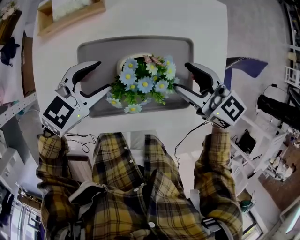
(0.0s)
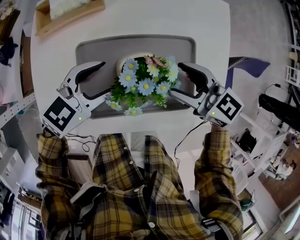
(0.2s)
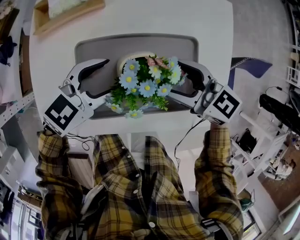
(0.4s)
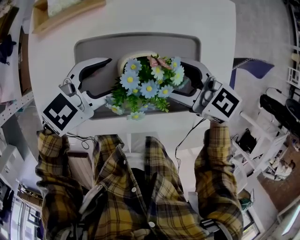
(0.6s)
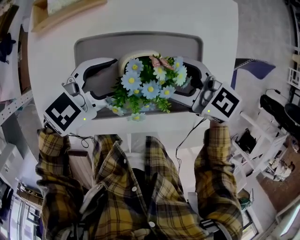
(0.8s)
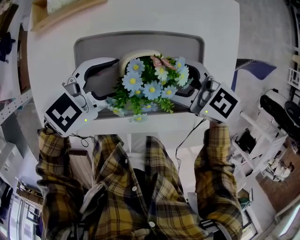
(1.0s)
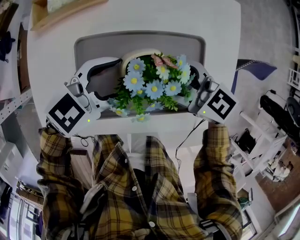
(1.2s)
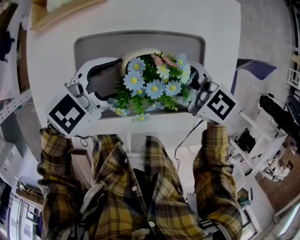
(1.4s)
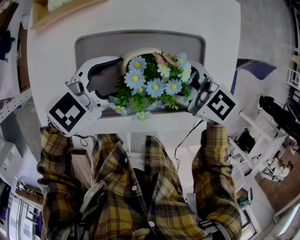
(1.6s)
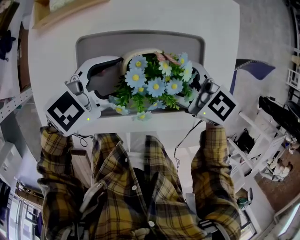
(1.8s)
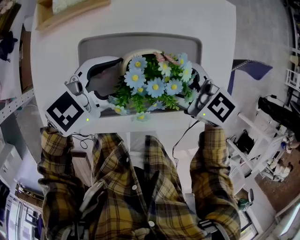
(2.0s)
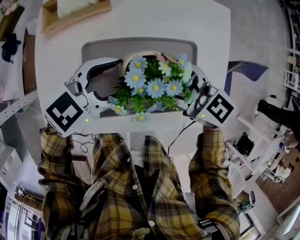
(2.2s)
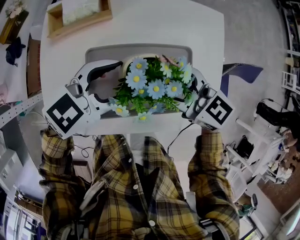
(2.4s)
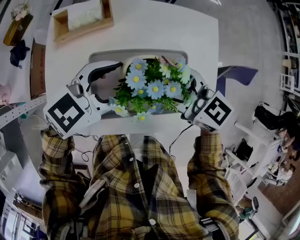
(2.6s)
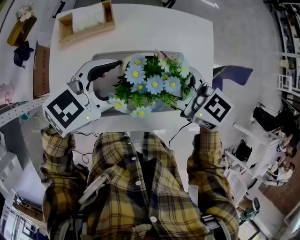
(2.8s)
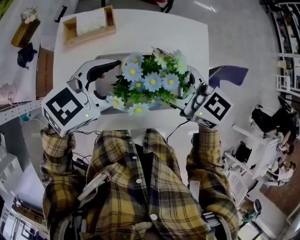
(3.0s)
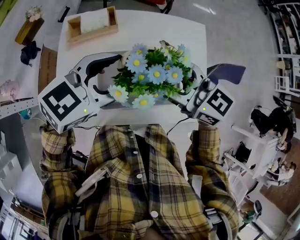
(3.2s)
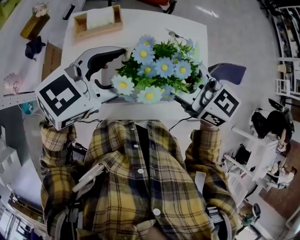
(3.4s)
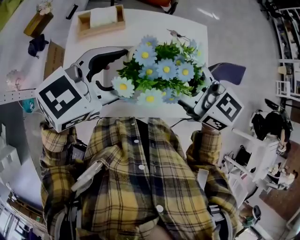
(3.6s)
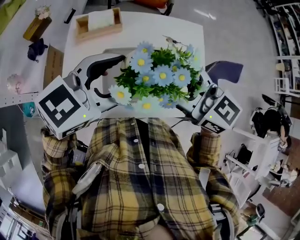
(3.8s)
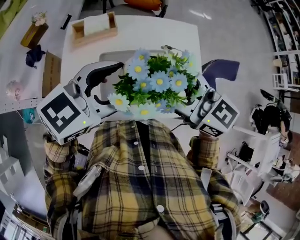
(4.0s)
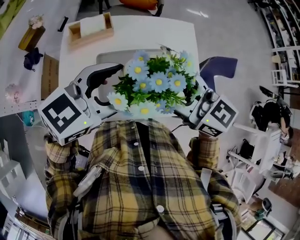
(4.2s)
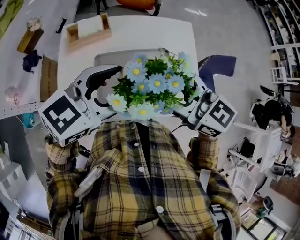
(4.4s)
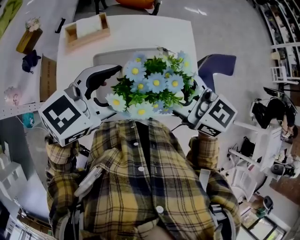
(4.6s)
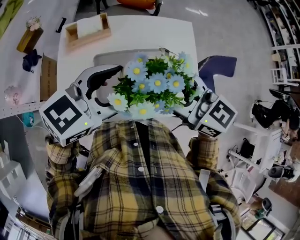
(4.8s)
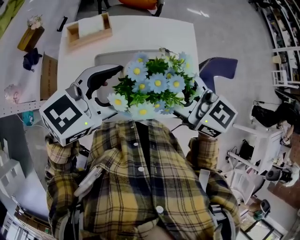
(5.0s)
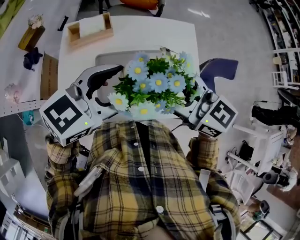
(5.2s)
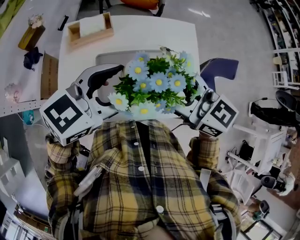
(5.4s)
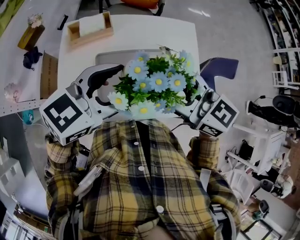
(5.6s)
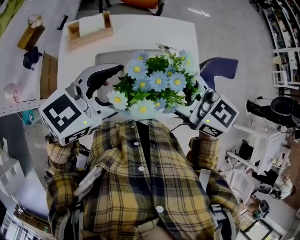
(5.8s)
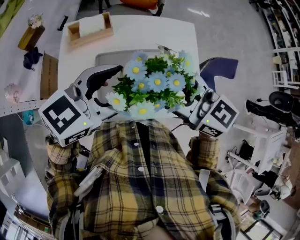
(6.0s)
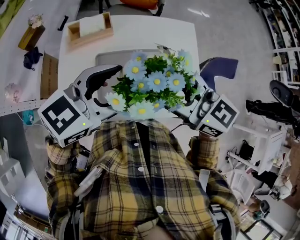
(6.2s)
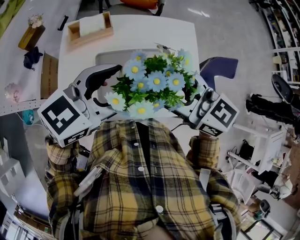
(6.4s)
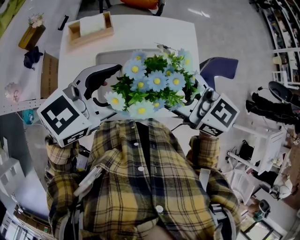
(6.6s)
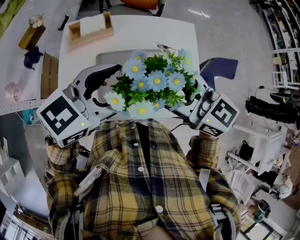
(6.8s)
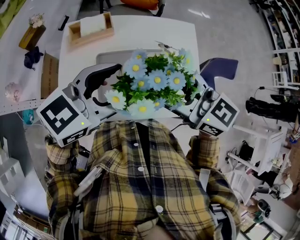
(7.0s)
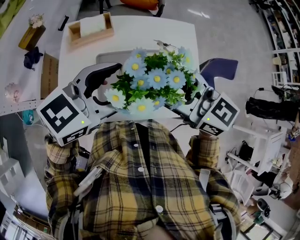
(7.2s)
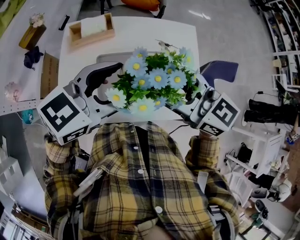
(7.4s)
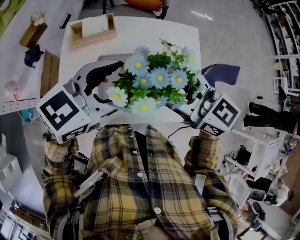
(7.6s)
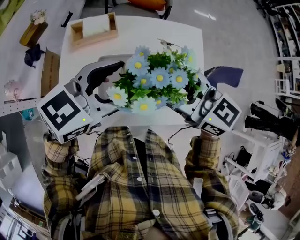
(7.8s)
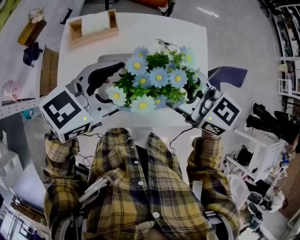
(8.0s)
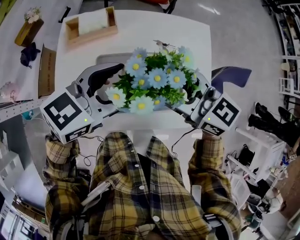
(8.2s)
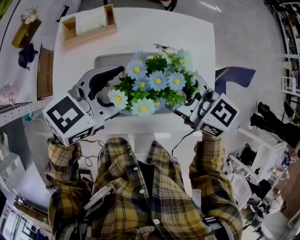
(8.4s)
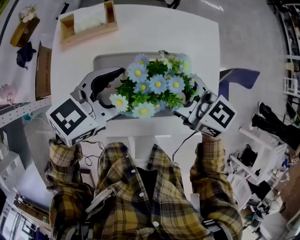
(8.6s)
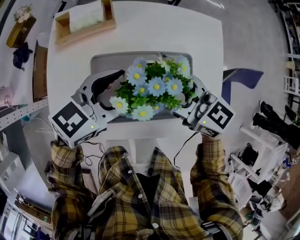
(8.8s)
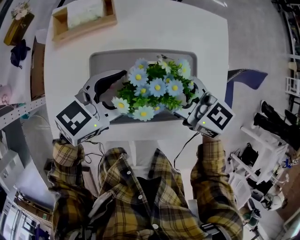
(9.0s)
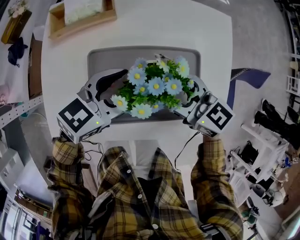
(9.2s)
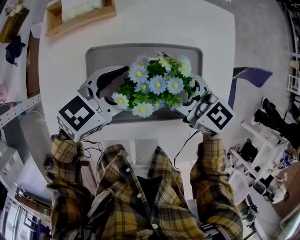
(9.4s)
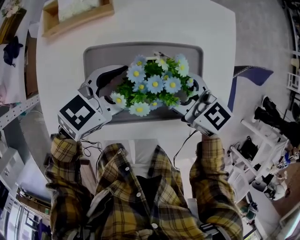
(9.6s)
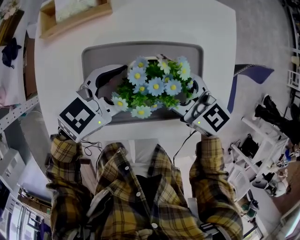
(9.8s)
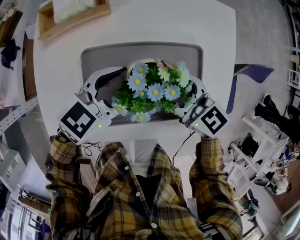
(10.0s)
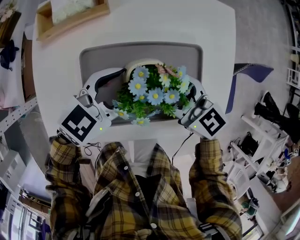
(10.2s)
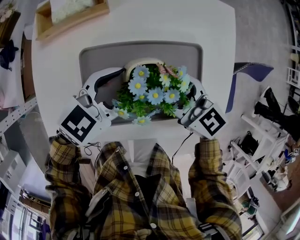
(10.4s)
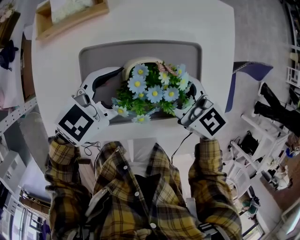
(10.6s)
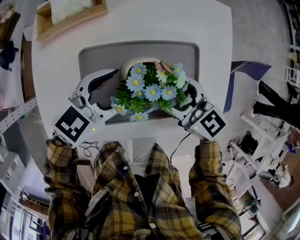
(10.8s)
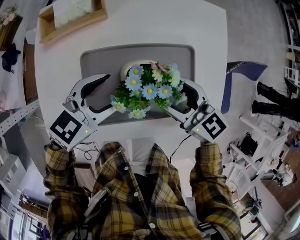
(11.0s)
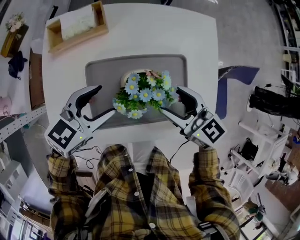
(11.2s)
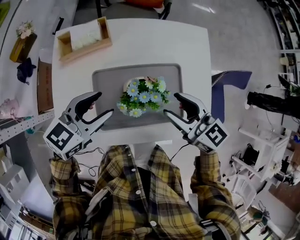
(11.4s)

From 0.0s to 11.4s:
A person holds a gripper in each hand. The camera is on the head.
From 0.0s to 1.4s: The right gripper ends up about 5 cm from where it was.
From 1.4s to 4.2s: There are only small adjustments of the grippers.
From 4.2s to 7.2s: The two grippers keep their place.
From 7.2s to 8.6s: Both grippers stay put.
From 8.6s to 10.0s: The grippers stay close to where they were, moving slightly.
From 10.0s to 11.4s: The right gripper shifts about 5 cm to the right. Meanwhile the left gripper moves to the left, approximately 5 cm.

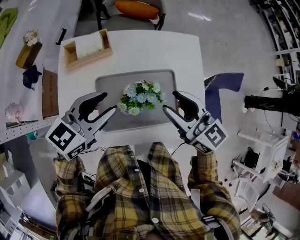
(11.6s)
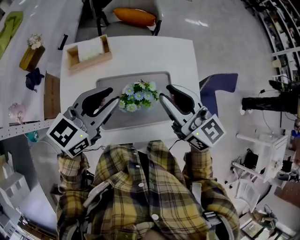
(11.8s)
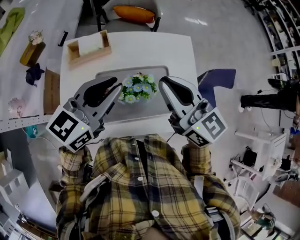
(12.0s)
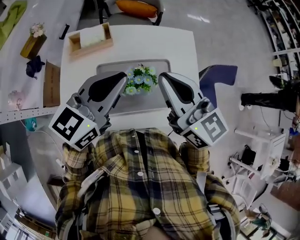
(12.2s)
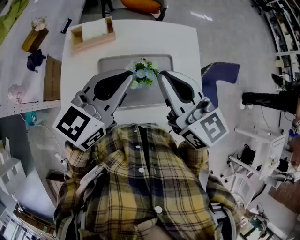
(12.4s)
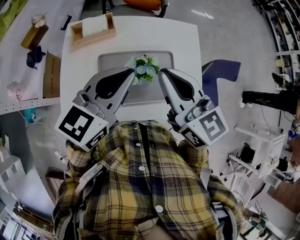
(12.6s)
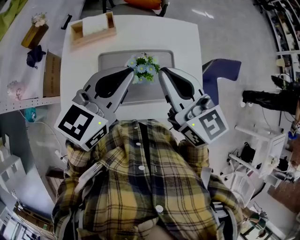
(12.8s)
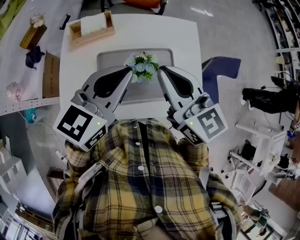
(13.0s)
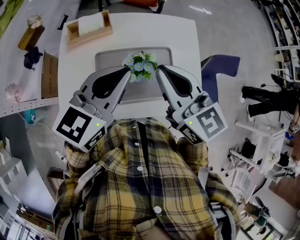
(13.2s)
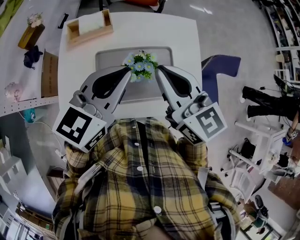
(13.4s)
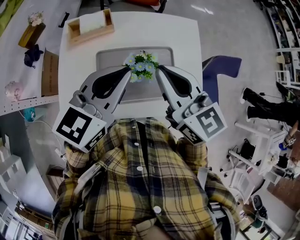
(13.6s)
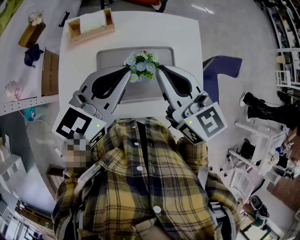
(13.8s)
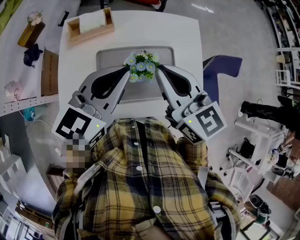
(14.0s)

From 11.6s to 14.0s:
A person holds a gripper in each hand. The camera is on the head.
From 11.6s to 12.8s: The right gripper shifts roughly 10 cm upward, and closes. The left gripper heads upward and to the right, covering some 10 cm, and closes its fingers.
From 12.8s to 14.0s: The grippers make only small movements.

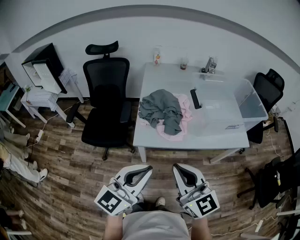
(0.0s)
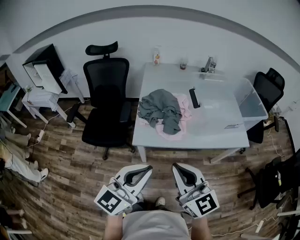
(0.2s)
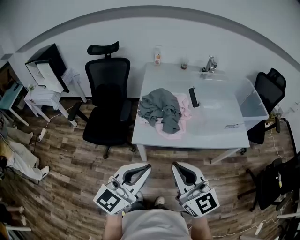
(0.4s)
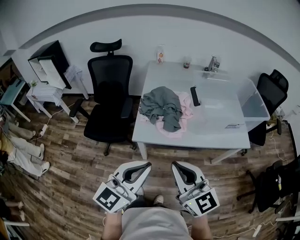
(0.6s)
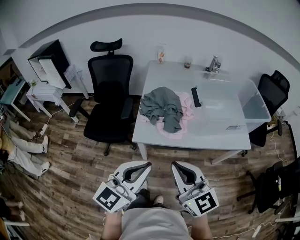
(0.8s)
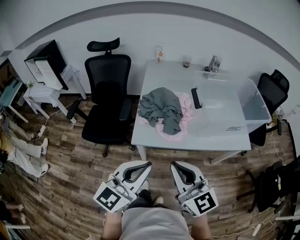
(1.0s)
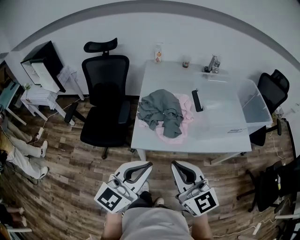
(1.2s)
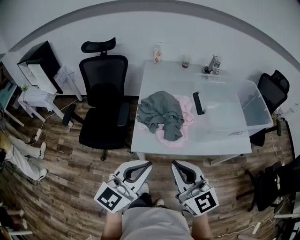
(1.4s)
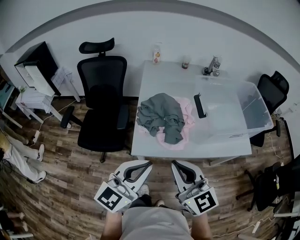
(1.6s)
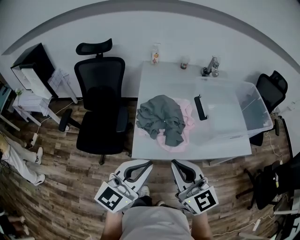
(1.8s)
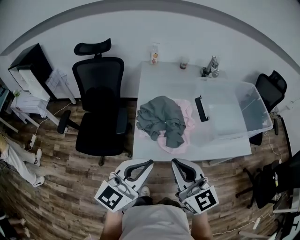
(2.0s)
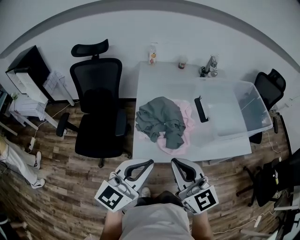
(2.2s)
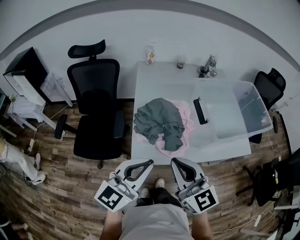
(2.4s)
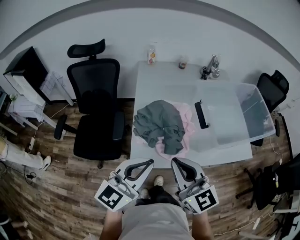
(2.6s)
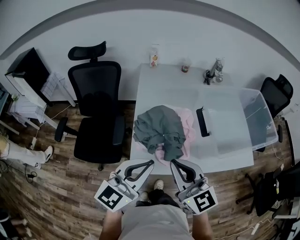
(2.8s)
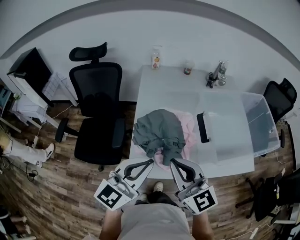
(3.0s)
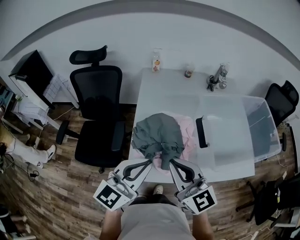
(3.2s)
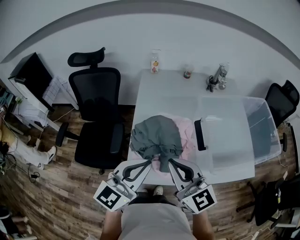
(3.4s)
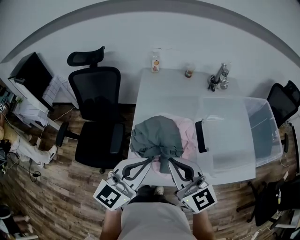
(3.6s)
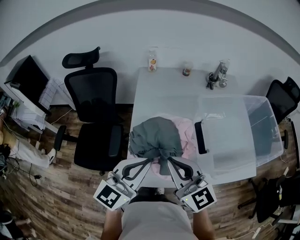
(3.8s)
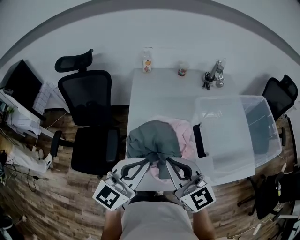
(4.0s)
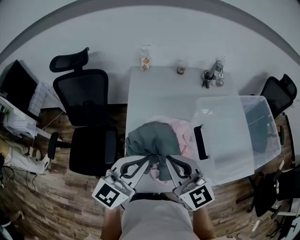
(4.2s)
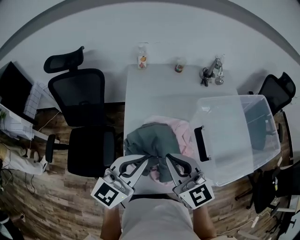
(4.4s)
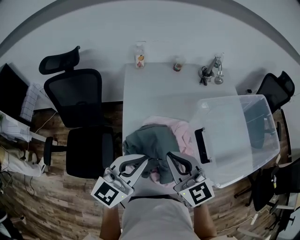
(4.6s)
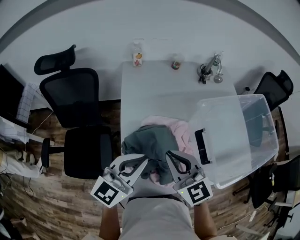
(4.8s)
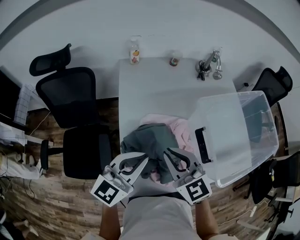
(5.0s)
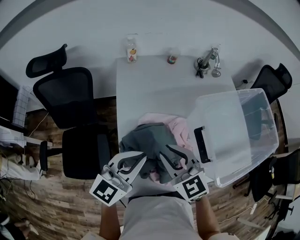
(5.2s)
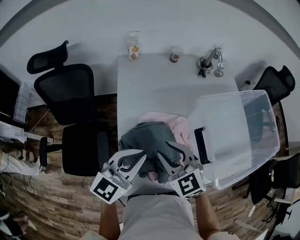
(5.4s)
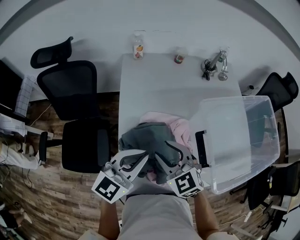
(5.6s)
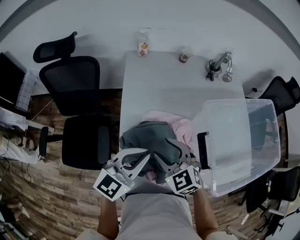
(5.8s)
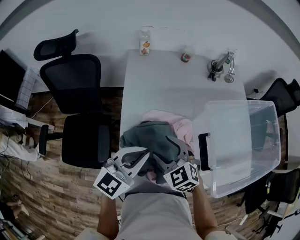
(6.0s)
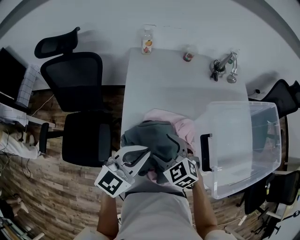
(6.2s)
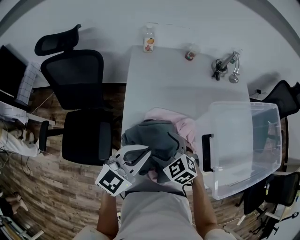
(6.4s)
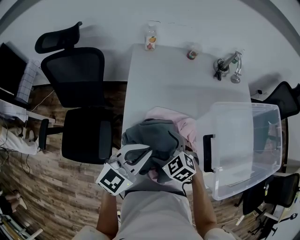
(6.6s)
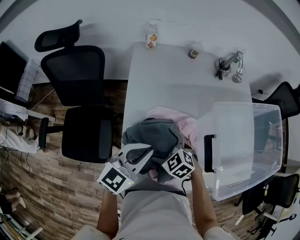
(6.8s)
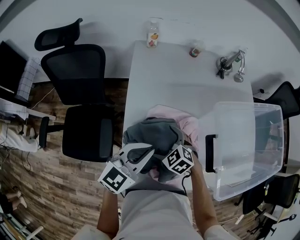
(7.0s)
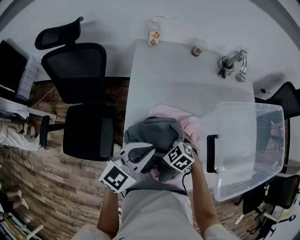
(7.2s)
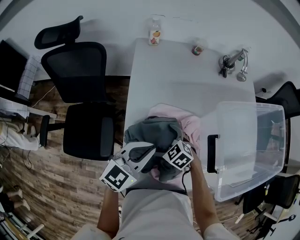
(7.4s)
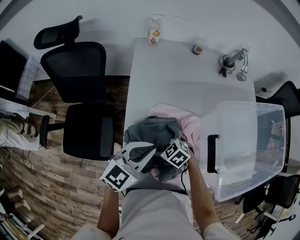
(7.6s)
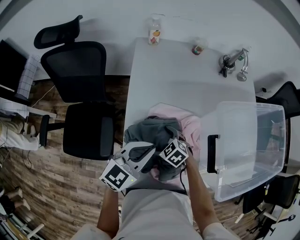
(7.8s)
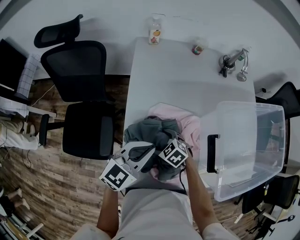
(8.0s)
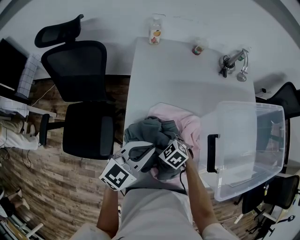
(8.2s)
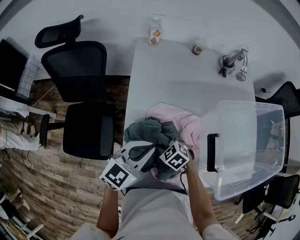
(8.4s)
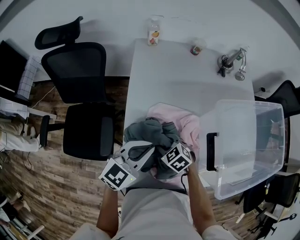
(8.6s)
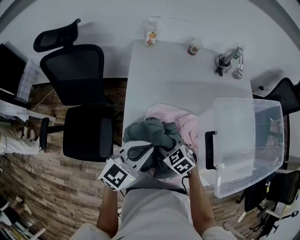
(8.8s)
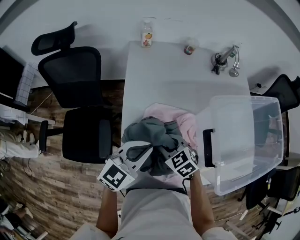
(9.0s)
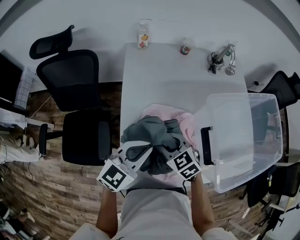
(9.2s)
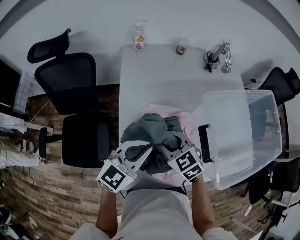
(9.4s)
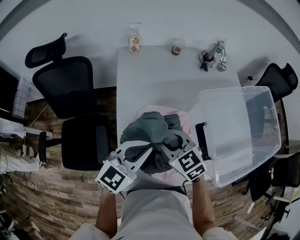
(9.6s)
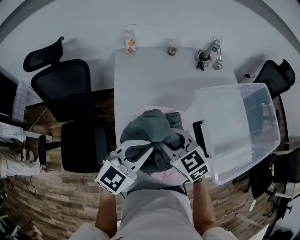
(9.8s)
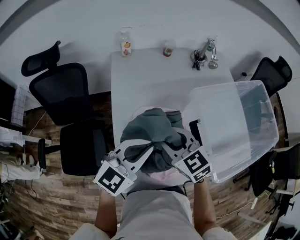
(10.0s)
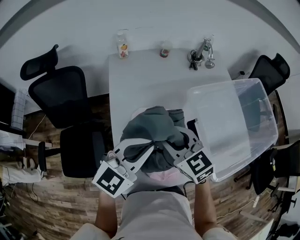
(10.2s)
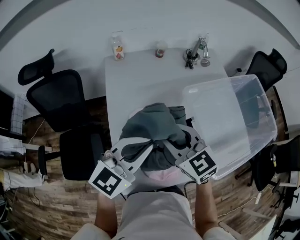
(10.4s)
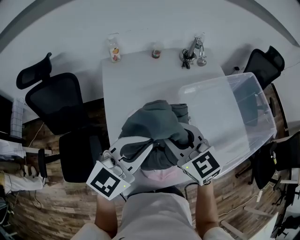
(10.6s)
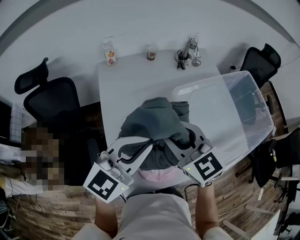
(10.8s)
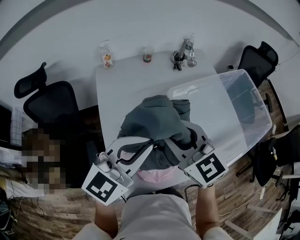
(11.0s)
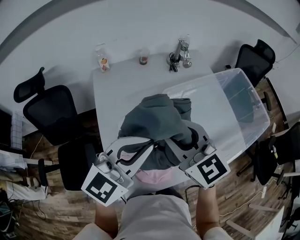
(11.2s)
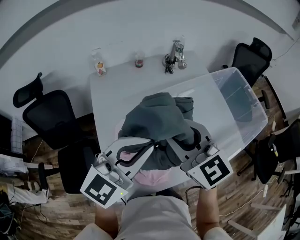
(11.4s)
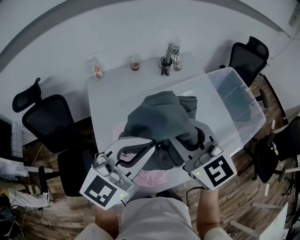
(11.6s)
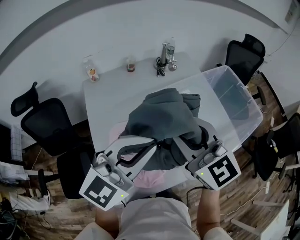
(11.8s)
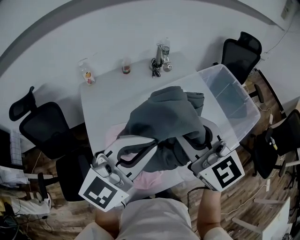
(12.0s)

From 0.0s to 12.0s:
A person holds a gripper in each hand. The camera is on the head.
From 0.0s to 1.6s: The two grippers go roughly 10 cm forward.
From 1.6s to 3.0s: The grippers both shift forward by about 15 cm.
From 3.0s to 4.4s: The grippers both shift forward by roughly 15 cm.
From 4.4s to 6.0s: The right gripper moves downward and forward, roughly 15 cm, changes its angle by some 30 degrees, and opens up. Meanwhile the left gripper moves forward and downward, about 10 cm.
From 6.0s to 7.6s: The left gripper heads downward, covering roughly 5 cm, while the right gripper goes some 15 cm downward, rotates roughly 20 degrees, and opens its fingers.
From 7.6s to 9.0s: The right gripper heads upward, covering approximately 10 cm, and closes up.
From 9.0s to 10.4s: The right gripper is displaced upward by roughly 20 cm, and swivels about 30 degrees. The left gripper is displaced upward and to the right by approximately 10 cm.
From 10.4s to 12.0s: Both grippers move to the right and upward, about 20 cm. The left gripper swivels about 20 degrees; the right gripper turns by some 20 degrees.
